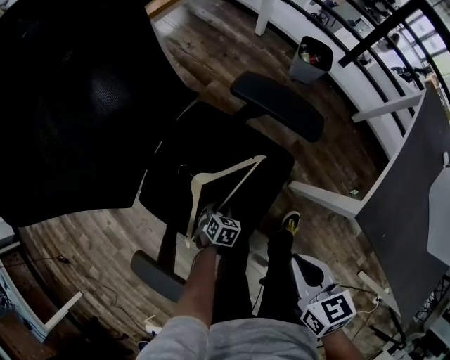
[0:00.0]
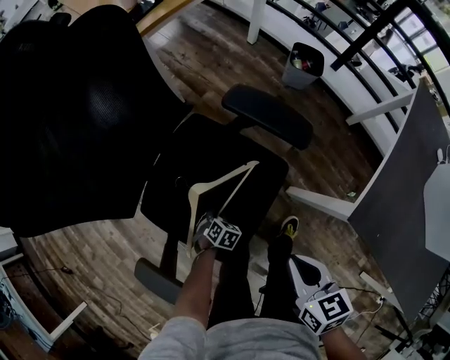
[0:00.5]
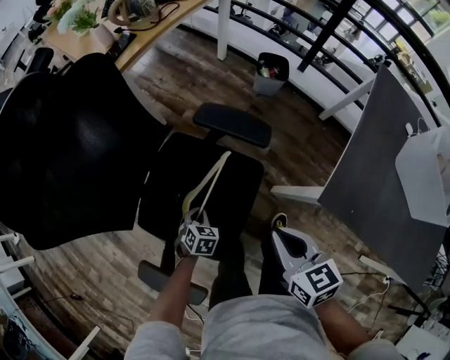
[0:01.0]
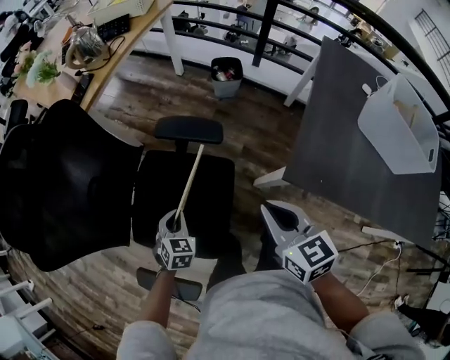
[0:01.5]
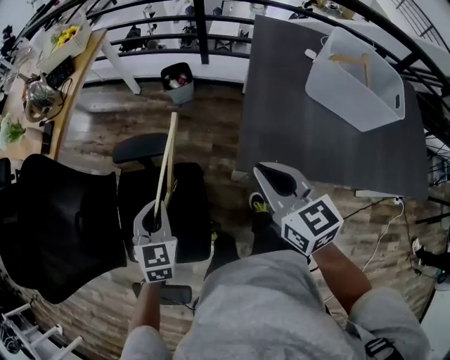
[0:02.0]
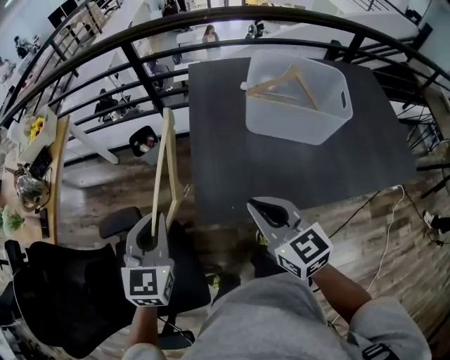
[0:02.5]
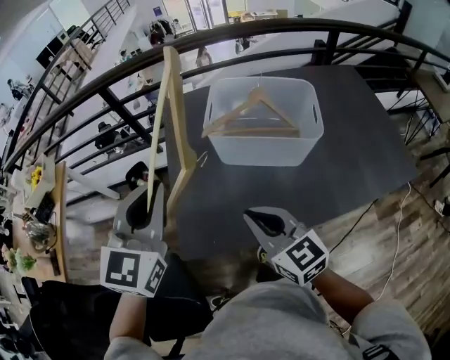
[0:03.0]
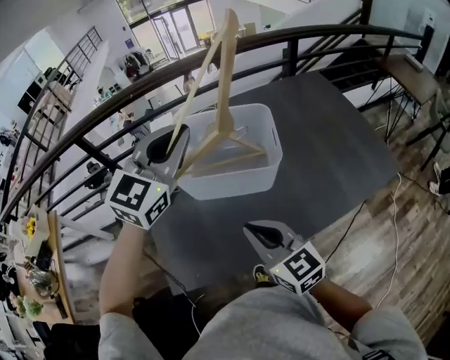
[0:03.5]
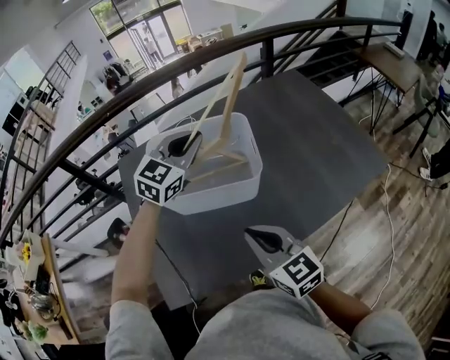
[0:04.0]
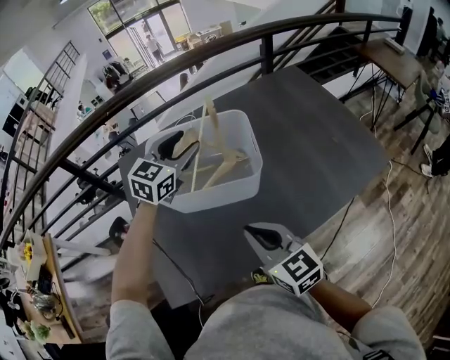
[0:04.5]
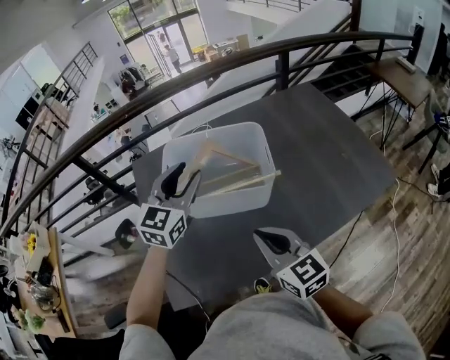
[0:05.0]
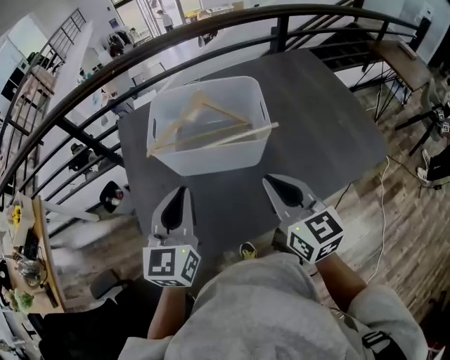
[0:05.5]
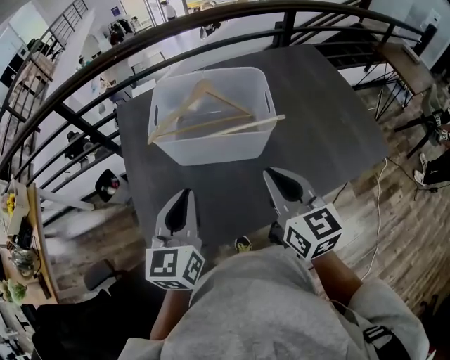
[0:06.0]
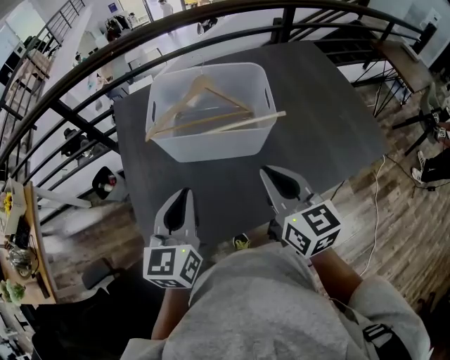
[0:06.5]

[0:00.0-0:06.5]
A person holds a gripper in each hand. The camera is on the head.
0:00.0 to 0:02.0: The right gripper travels upward by about 20 cm, and swivels some 40 degrees. Meanwhile the left gripper travels upward by about 40 cm, and tips its fingers upward by about 40 degrees.
0:02.0 to 0:04.5: Both grippers are carried some 60 cm. The right gripper rotates some 30 degrees, while the left gripper swivels about 70 degrees, and opens up.
0:04.5 to 0:06.5: The left gripper goes about 25 cm backward, changes its angle by about 40 degrees, and closes.

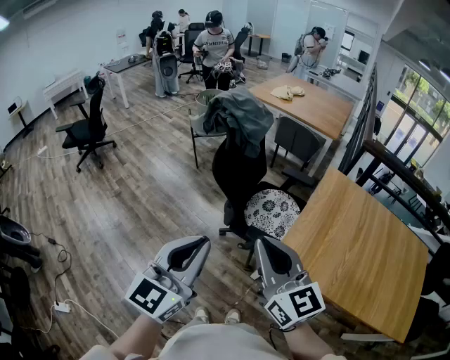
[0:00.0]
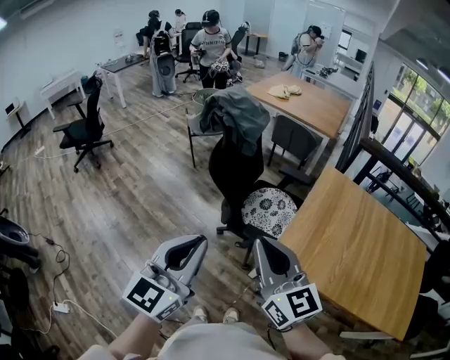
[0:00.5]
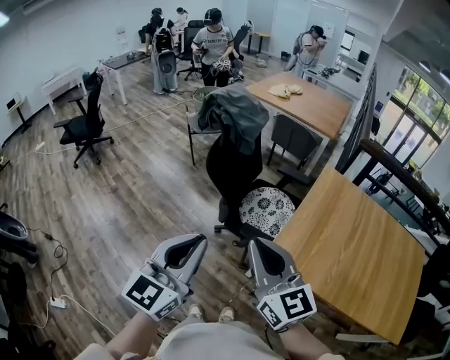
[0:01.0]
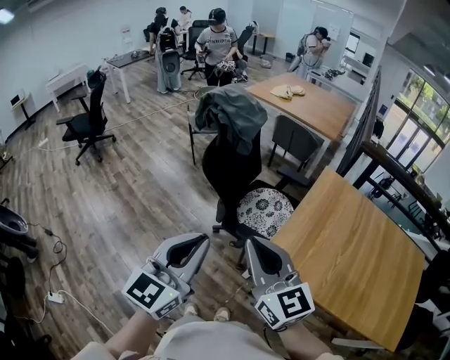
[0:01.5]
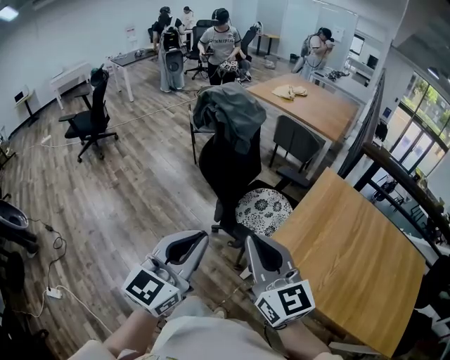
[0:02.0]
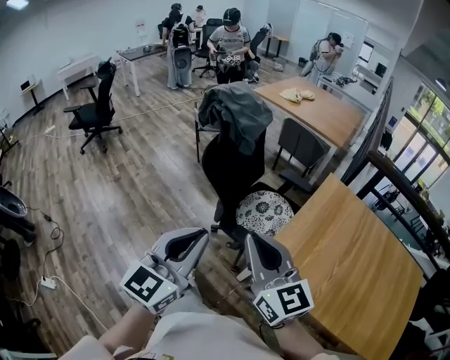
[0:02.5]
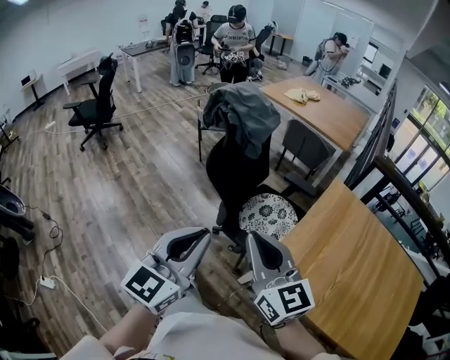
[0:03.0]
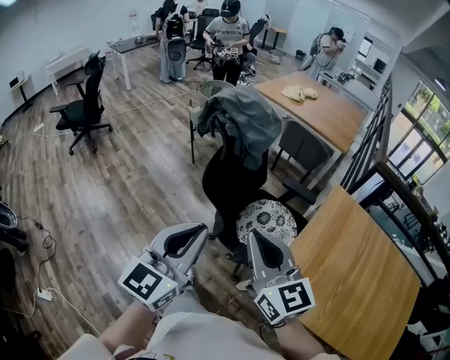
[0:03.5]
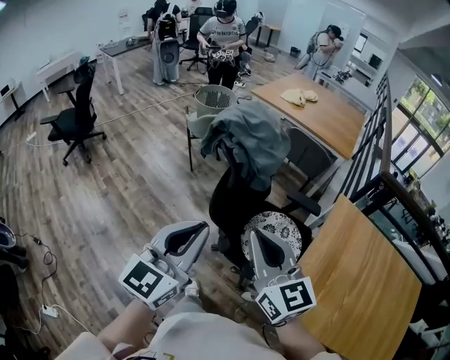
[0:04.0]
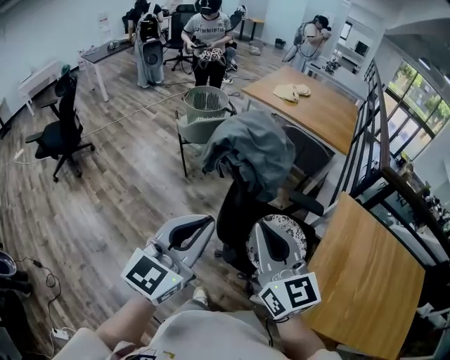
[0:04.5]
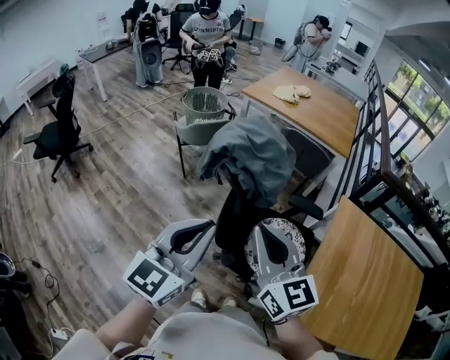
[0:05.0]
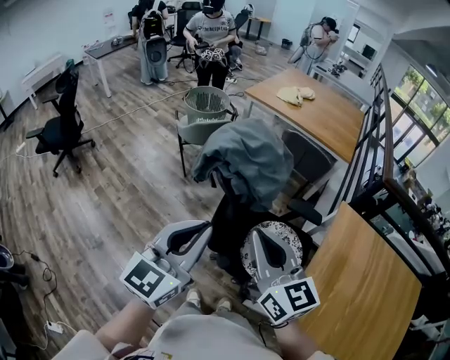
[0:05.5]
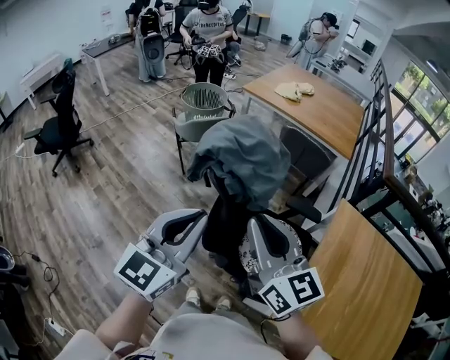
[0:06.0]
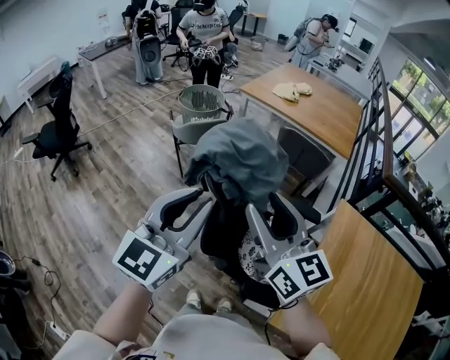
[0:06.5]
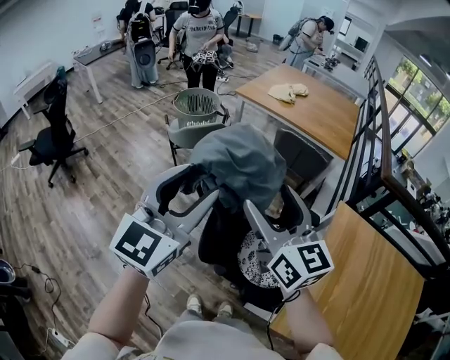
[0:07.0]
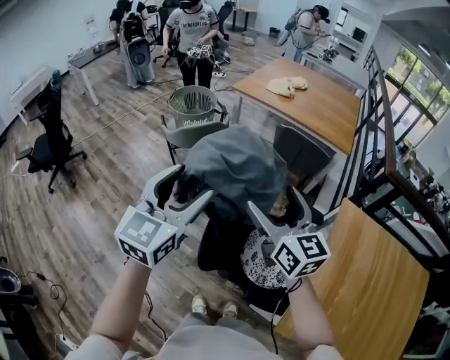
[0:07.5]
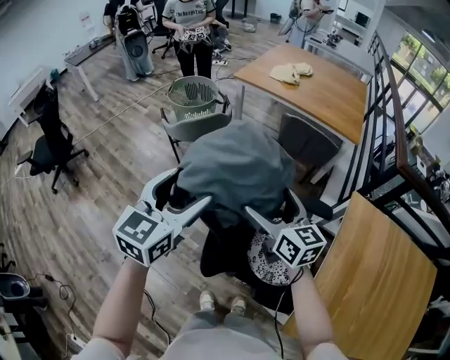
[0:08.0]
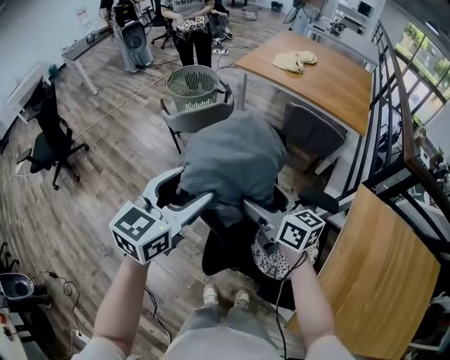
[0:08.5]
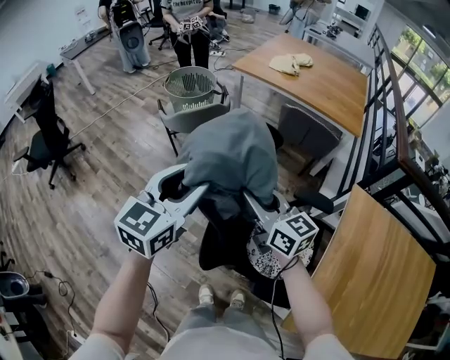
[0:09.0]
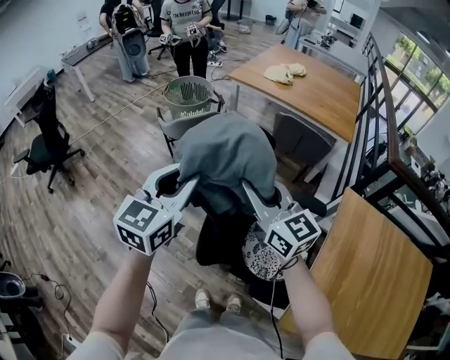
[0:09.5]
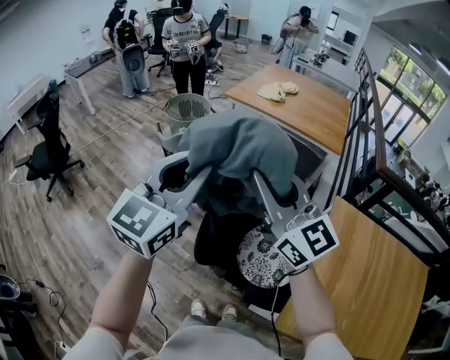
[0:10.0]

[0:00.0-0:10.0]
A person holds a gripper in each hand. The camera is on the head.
0:00.0 to 0:02.0: The grippers both shift to the right by some 10 cm.
0:02.0 to 0:04.0: The left gripper heads forward and to the left, covering approximately 40 cm. Meanwhile the right gripper heads forward, covering some 35 cm.
0:04.0 to 0:06.0: The grippers both shift forward by some 20 cm.
0:06.0 to 0:08.0: The left gripper shifts roughly 20 cm forward, and opens its fingers; the right gripper moves forward and downward, some 25 cm, and opens up.
0:08.0 to 0:10.0: The right gripper goes about 25 cm upward and backward, turns by about 30 degrees, and closes. Meanwhile the left gripper shifts some 15 cm upward and backward, and closes.

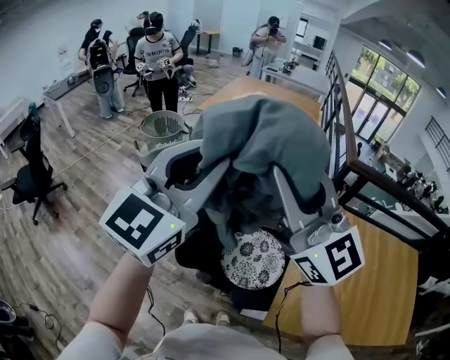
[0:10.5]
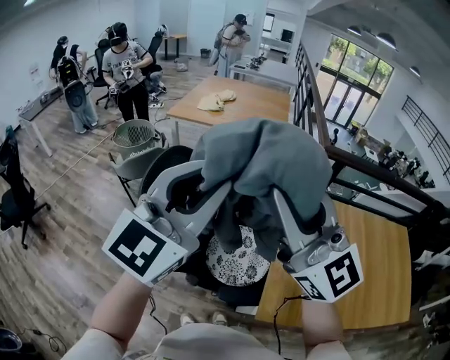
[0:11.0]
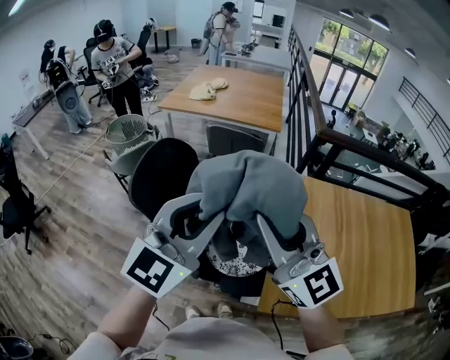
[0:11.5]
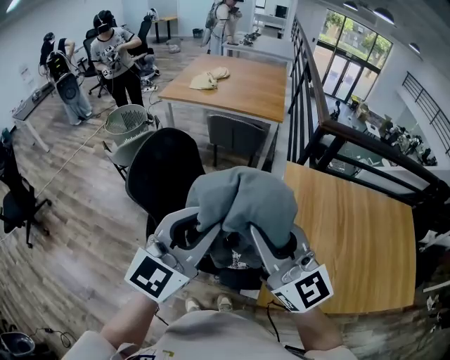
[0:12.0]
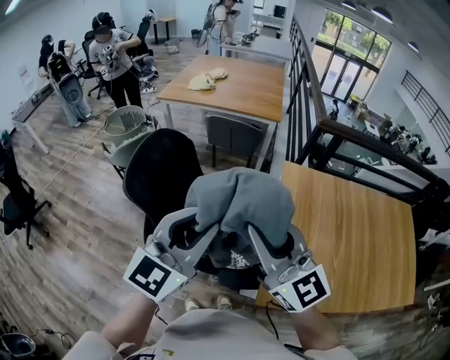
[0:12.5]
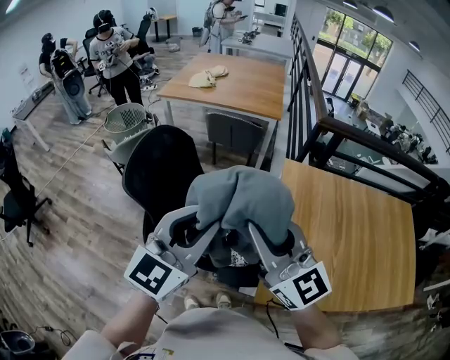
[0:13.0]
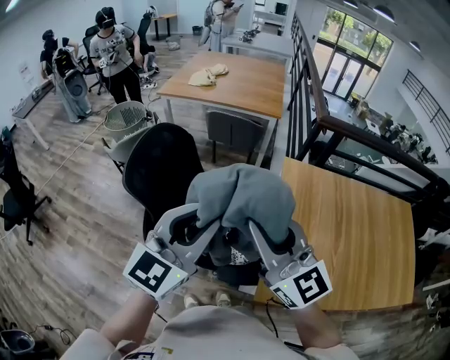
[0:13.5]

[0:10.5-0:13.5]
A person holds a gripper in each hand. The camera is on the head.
0:10.5 to 0:12.0: The grippers both shift downward and to the right by approximately 20 cm.
0:12.0 to 0:13.5: The grippers stay close to where they were, moving slightly.

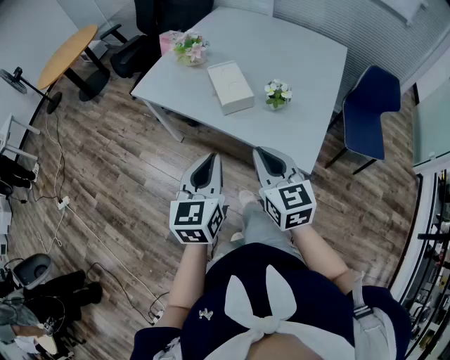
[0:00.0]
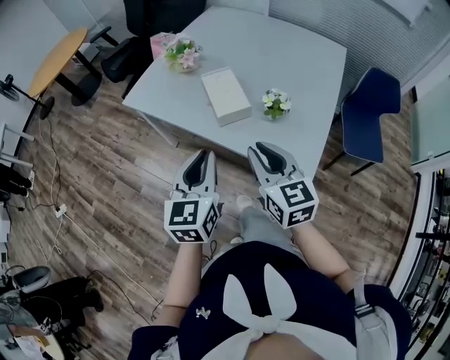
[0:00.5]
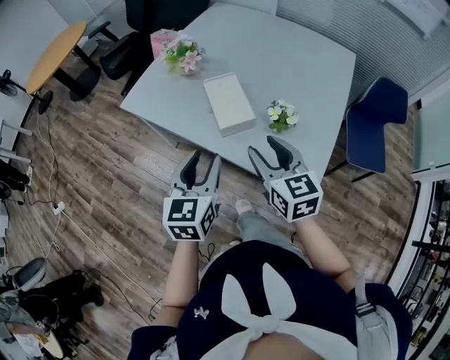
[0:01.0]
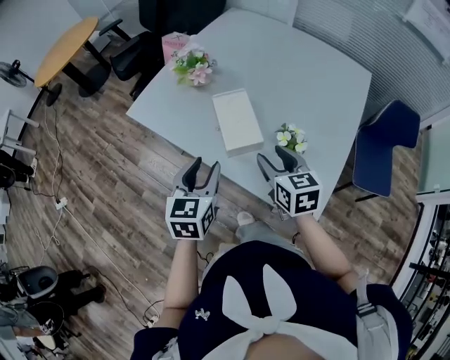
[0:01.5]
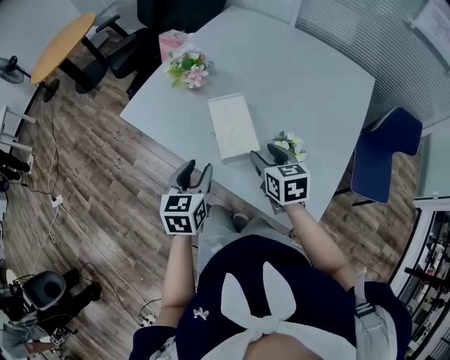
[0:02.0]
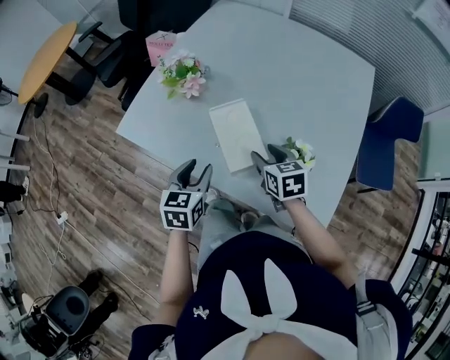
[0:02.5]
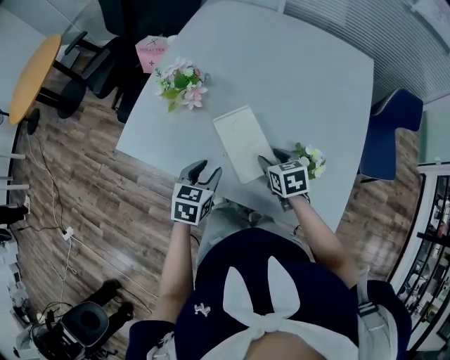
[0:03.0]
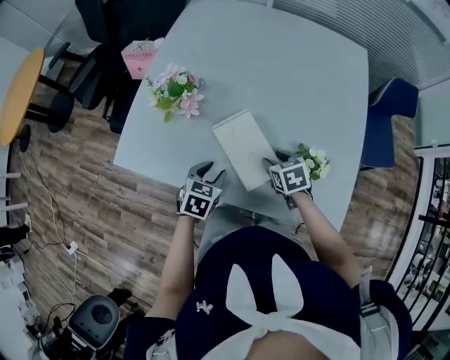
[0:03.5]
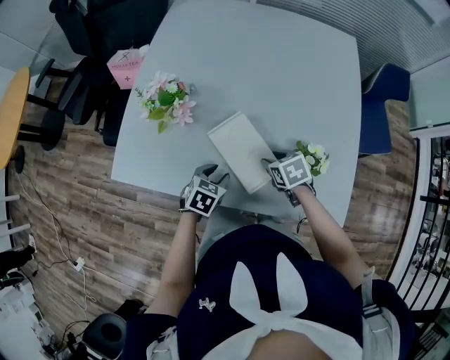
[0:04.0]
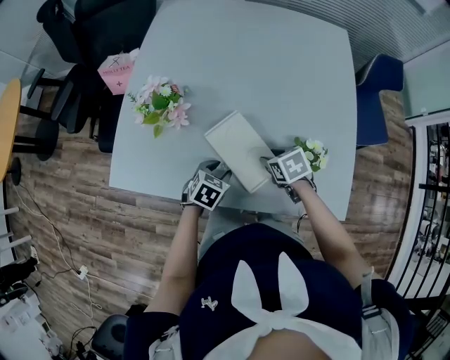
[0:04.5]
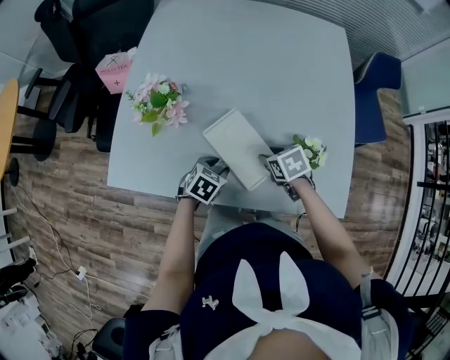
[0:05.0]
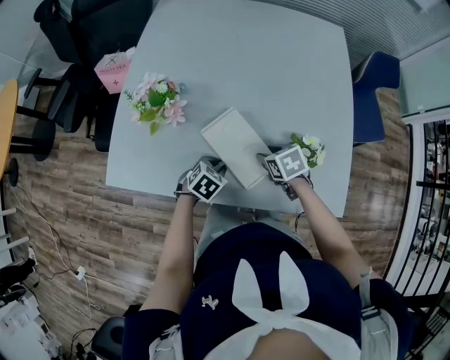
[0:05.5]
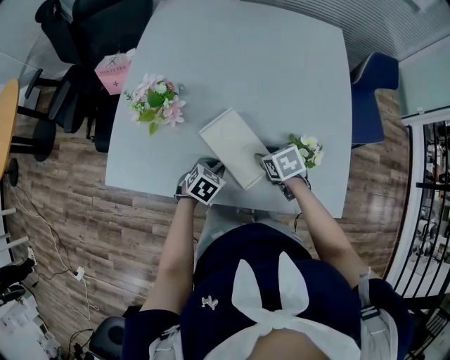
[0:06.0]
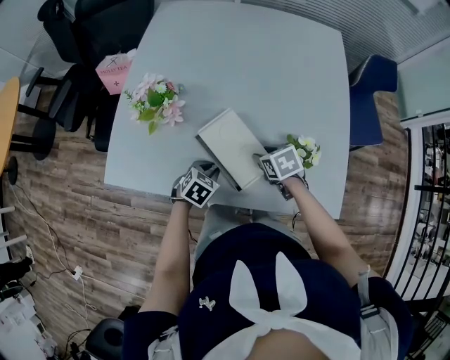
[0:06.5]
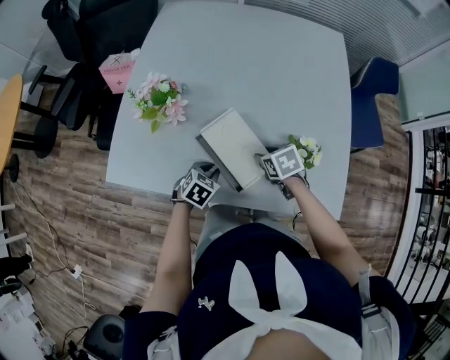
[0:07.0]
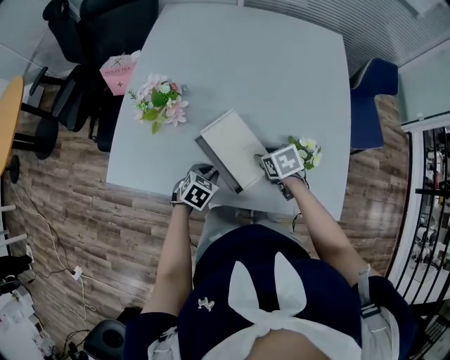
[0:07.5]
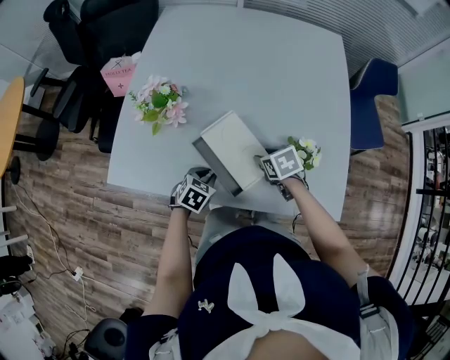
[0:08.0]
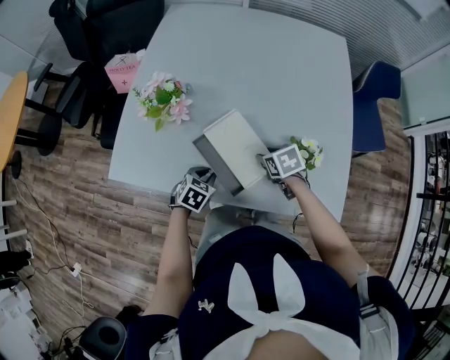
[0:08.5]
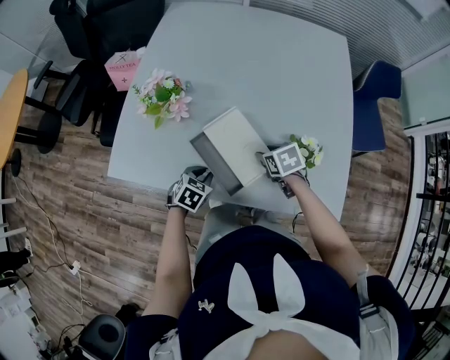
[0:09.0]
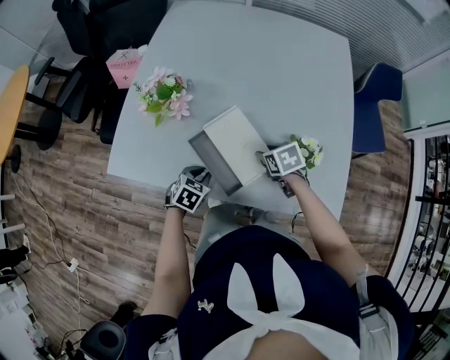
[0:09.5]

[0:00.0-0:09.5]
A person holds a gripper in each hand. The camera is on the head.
0:00.0 to 0:02.0: The two grippers go some 25 cm forward. The left gripper opens. The right gripper turns by about 20 degrees, and opens up.
0:02.0 to 0:04.0: Both grippers move downward, roughly 15 cm. The right gripper turns by approximately 30 degrees, while the left gripper changes its angle by approximately 50 degrees.
0:04.0 to 0:05.5: The left gripper closes up.
0:05.5 to 0:07.5: There are only small adjustments of the grippers.
0:07.5 to 0:09.5: The grippers move only a little.
